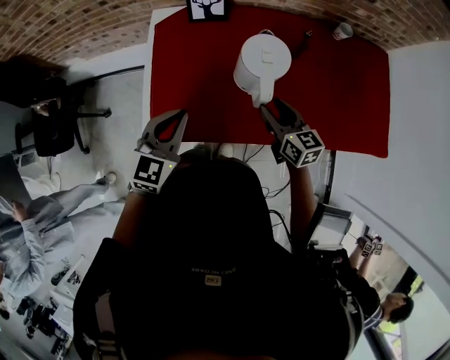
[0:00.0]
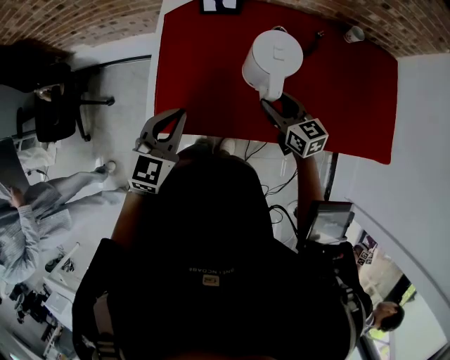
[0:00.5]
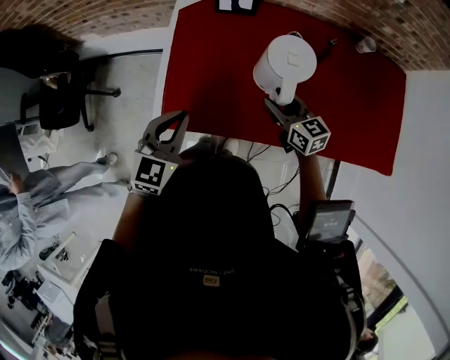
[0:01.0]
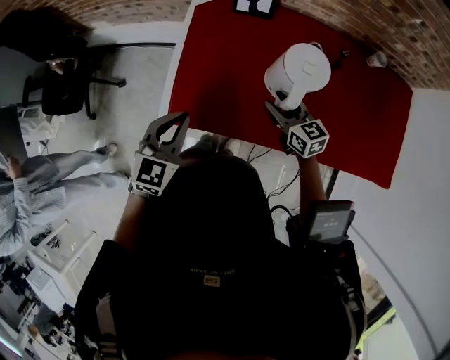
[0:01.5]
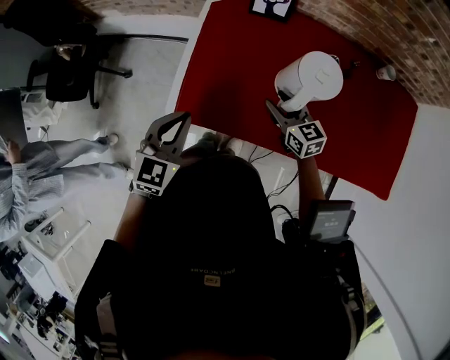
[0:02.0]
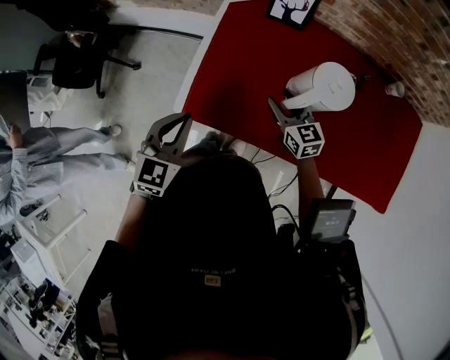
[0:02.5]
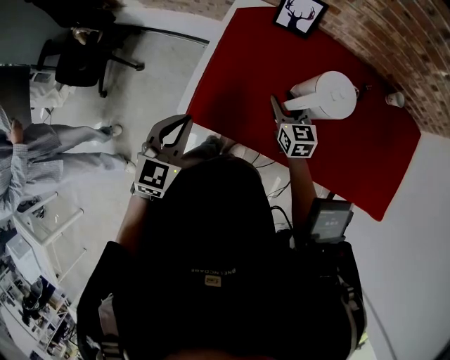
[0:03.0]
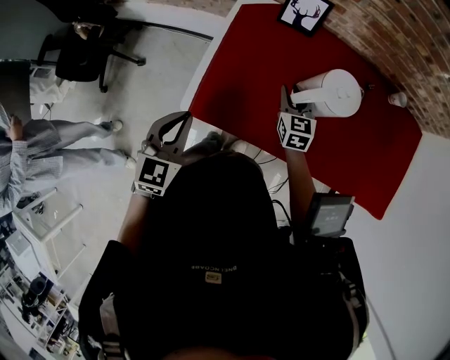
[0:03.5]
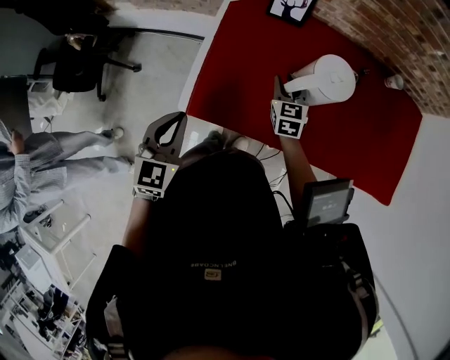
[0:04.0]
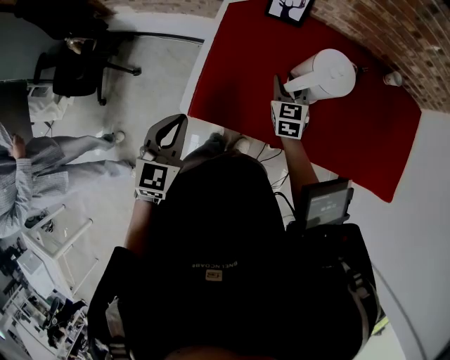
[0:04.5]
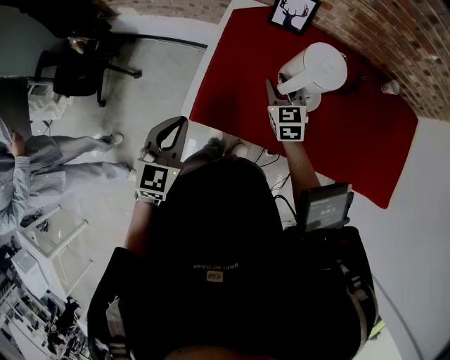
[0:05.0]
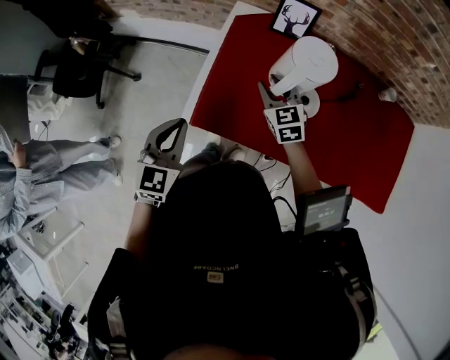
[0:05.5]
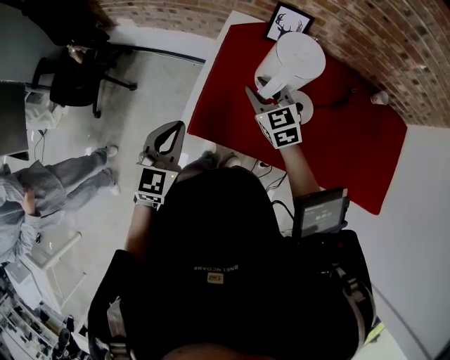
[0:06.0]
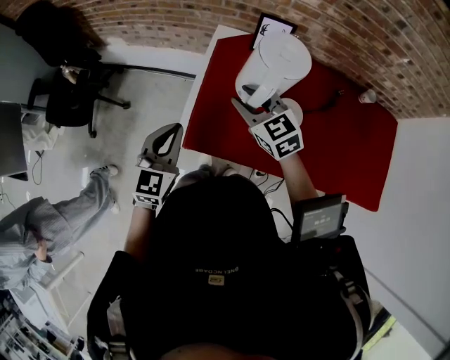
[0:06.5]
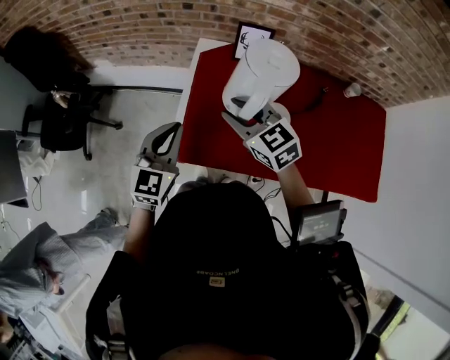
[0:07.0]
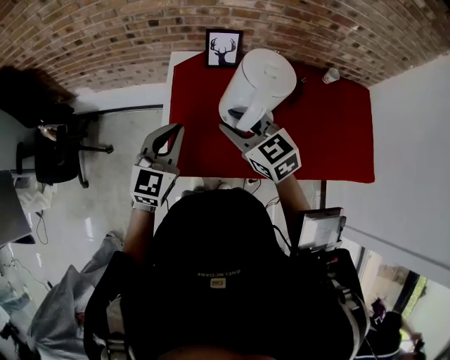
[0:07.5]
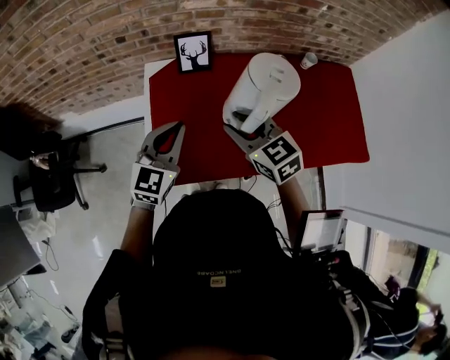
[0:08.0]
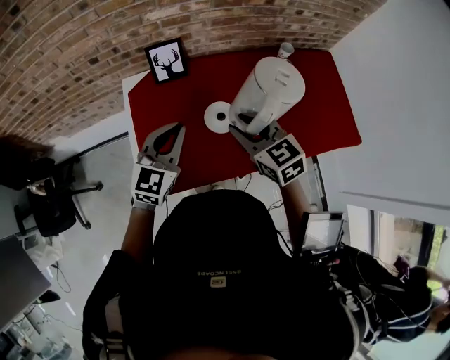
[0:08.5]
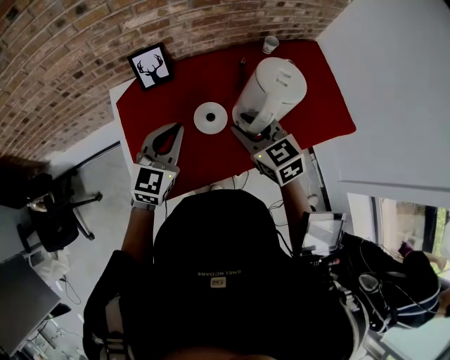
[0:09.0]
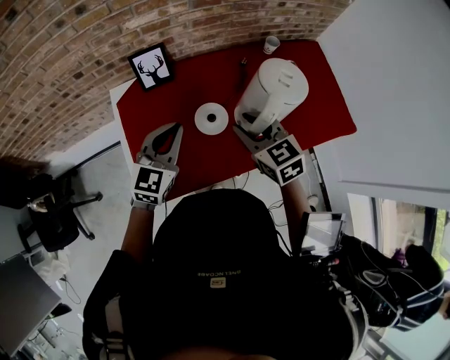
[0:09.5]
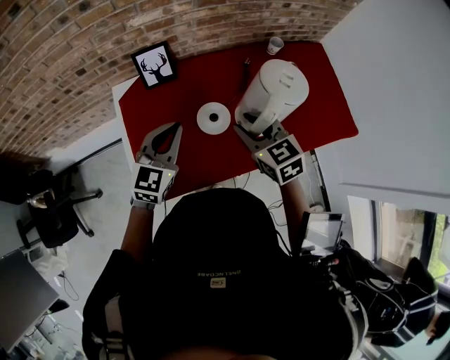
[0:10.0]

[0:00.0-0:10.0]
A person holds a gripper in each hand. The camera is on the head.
0:00.0 to 0:02.0: Both grippers travel together to the left, about 10 cm. The right gripper rotates about 20 degrees.
0:02.0 to 0:04.0: The right gripper is displaced forward by some 5 cm, changes its angle by some 30 degrees, and closes its fingers; the left gripper shifts approximately 5 cm to the left.
0:04.0 to 0:06.0: The right gripper goes about 15 cm to the left and upward, and swivels approximately 30 degrees.
0:06.0 to 0:08.0: The left gripper heads to the right, forward and upward, covering approximately 20 cm, and changes its angle by approximately 30 degrees. Meanwhile the right gripper is displaced upward, to the right and backward by approximately 15 cm.
0:08.0 to 0:10.0: Both grippers travel together to the right, roughly 10 cm.

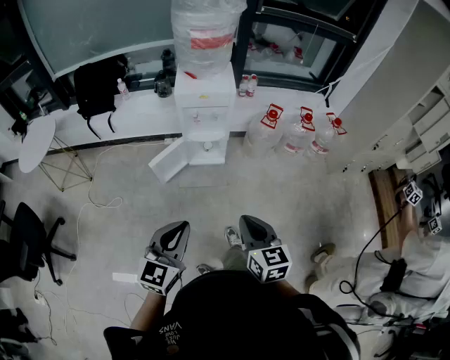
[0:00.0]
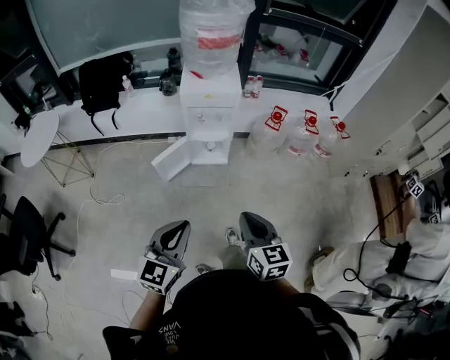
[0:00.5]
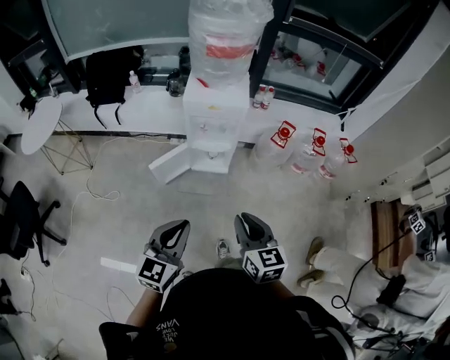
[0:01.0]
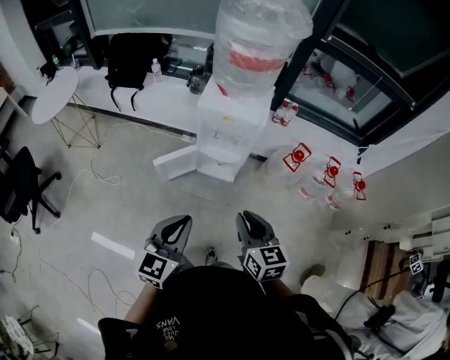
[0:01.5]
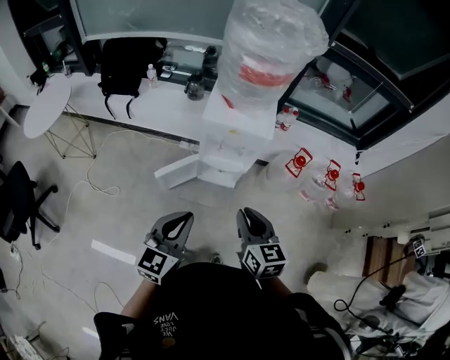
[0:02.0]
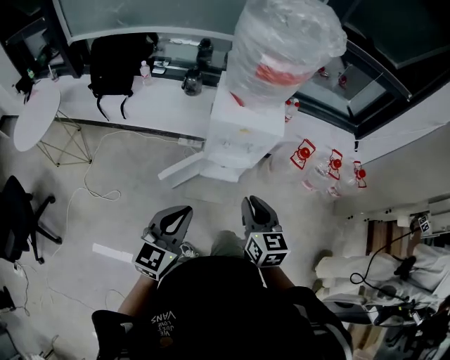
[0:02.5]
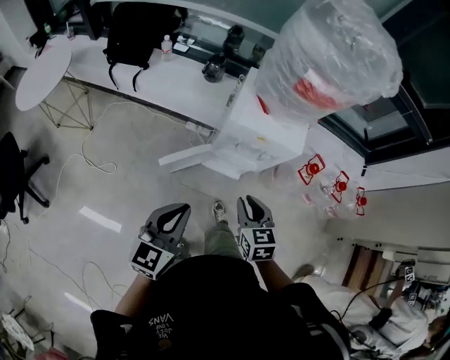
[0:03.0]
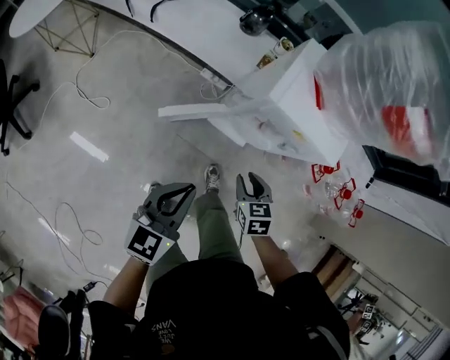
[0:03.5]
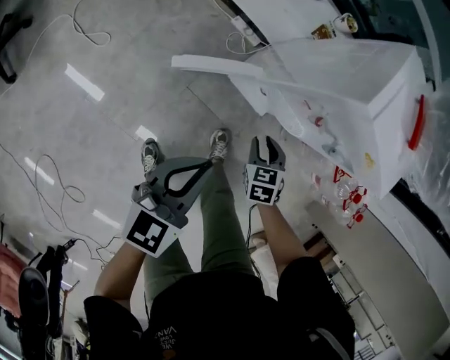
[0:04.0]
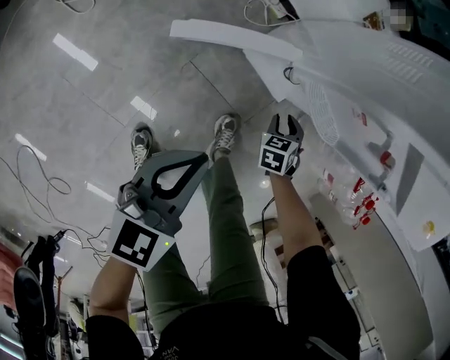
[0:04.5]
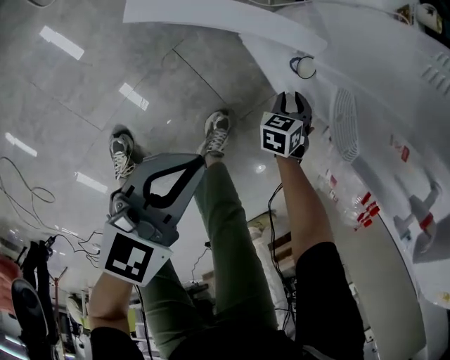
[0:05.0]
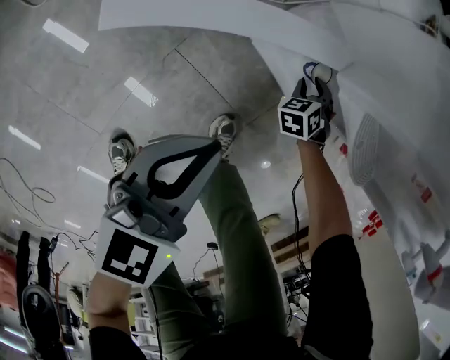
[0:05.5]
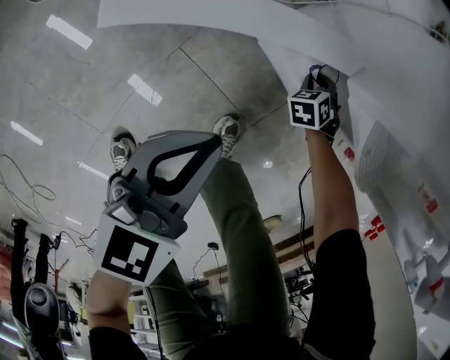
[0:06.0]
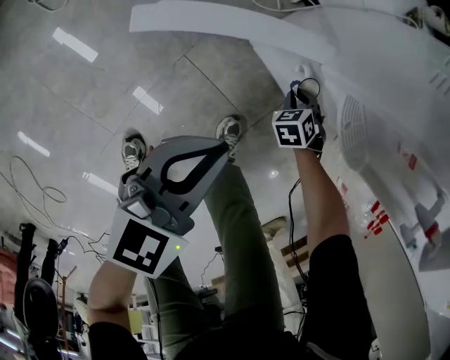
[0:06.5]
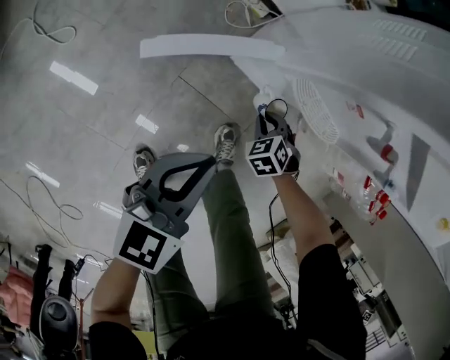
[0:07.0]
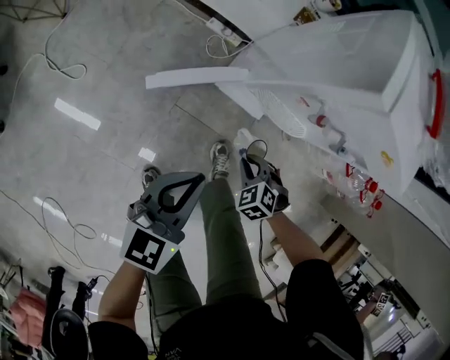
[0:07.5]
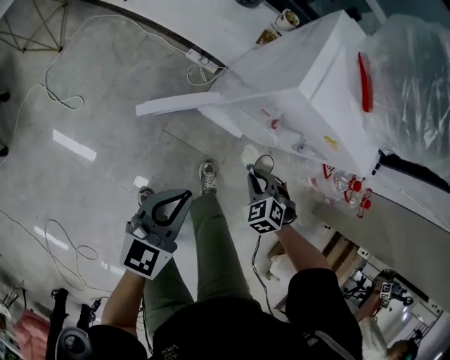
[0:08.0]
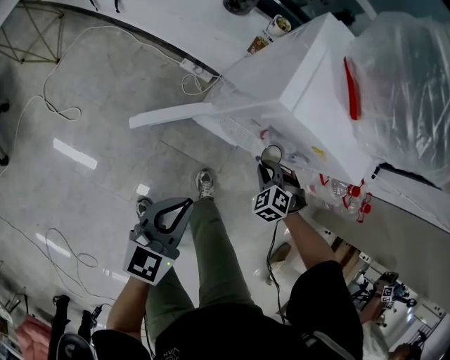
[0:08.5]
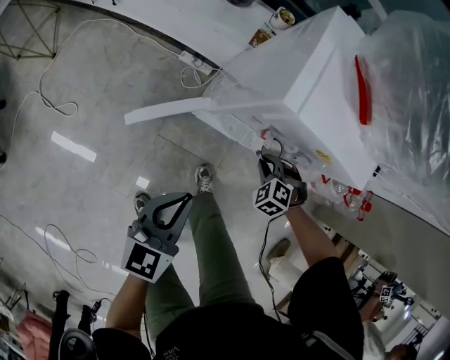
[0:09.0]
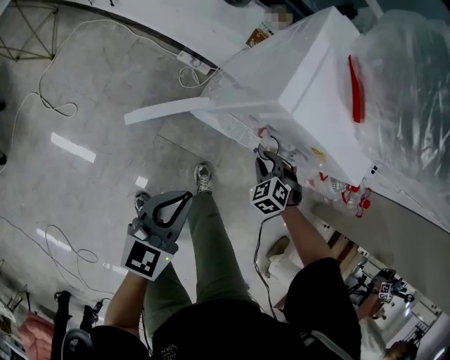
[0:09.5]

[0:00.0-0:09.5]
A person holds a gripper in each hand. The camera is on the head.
0:00.0 to 0:02.0: The two grippers go approximately 30 cm forward.
0:02.0 to 0:04.0: The right gripper shifts roughly 50 cm downward and forward, and tips its fingers downward by approximately 40 degrees; the left gripper goes about 40 cm downward, forward and to the left.
0:04.0 to 0:05.5: The right gripper goes some 50 cm downward and forward, and rotates about 30 degrees; the left gripper moves downward, roughly 35 cm.
0:05.5 to 0:07.5: Both grippers travel together upward, about 30 cm. The right gripper swivels some 20 degrees.
0:07.5 to 0:09.5: The left gripper goes approximately 5 cm upward, while the right gripper shifts about 20 cm forward, upward and to the right.

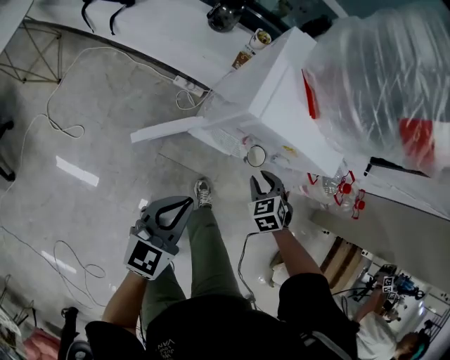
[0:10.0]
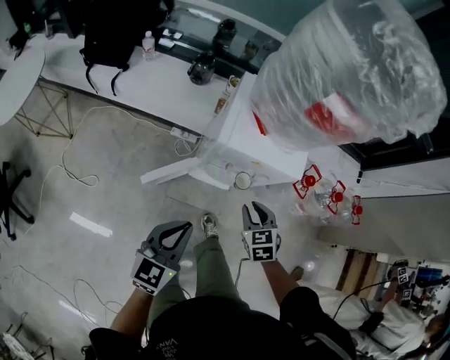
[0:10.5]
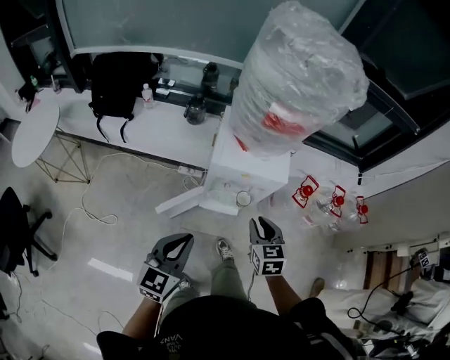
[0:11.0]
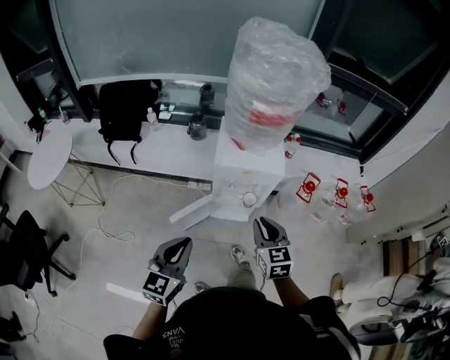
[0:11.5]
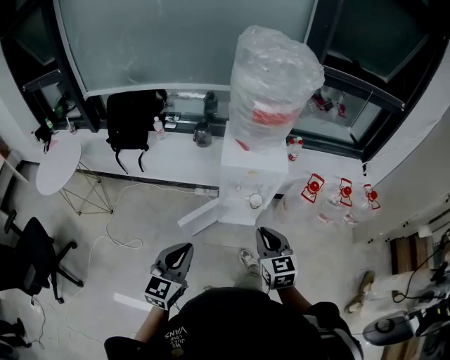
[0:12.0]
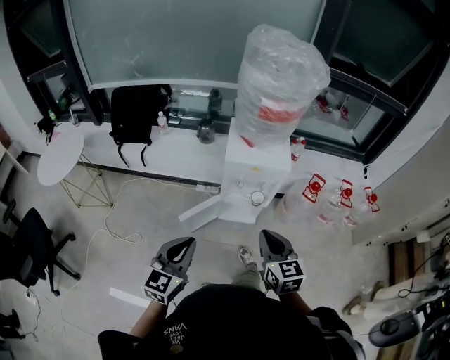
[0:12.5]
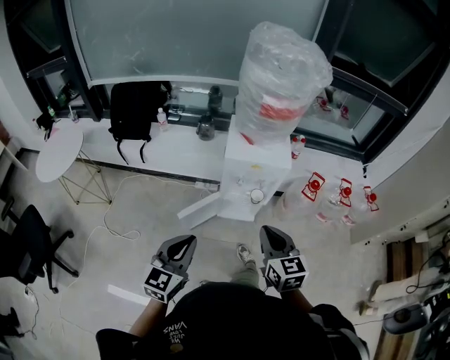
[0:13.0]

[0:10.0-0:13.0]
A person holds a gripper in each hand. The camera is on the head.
0:10.0 to 0:11.5: Both grippers travel together upward and backward, some 35 cm. The right gripper tips its fingers upward by roughly 40 degrees.
0:11.5 to 0:13.0: The left gripper heads backward, covering approximately 5 cm. The right gripper is displaced backward by some 10 cm.

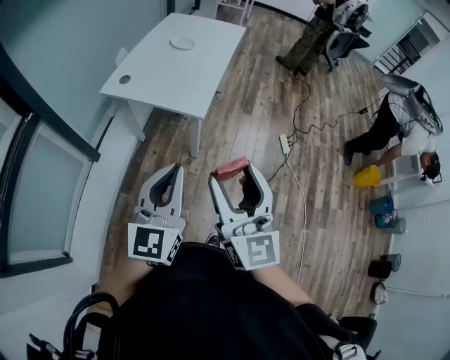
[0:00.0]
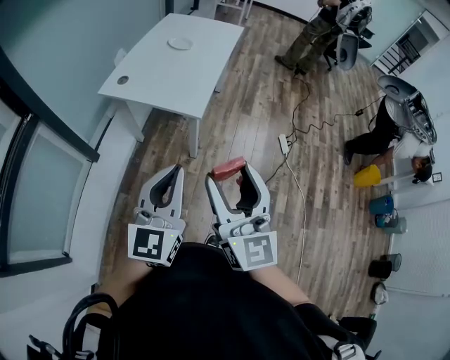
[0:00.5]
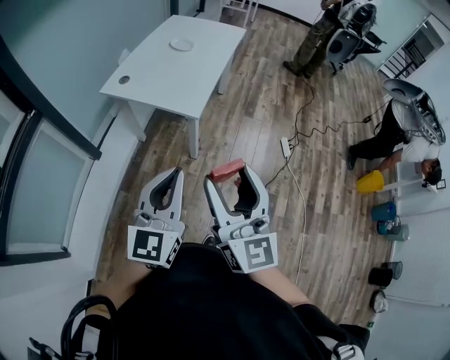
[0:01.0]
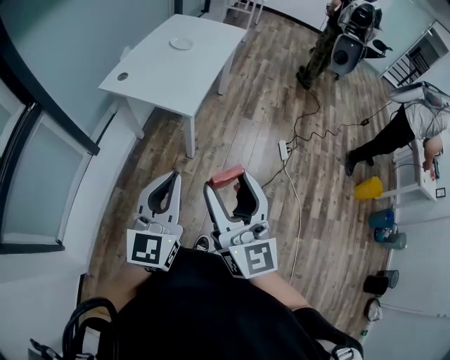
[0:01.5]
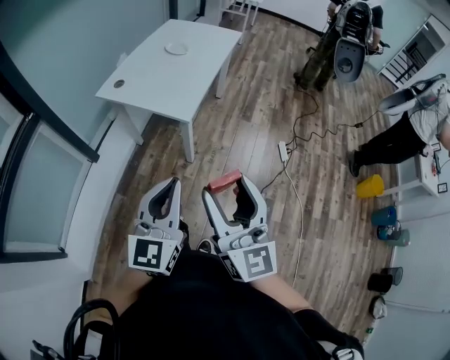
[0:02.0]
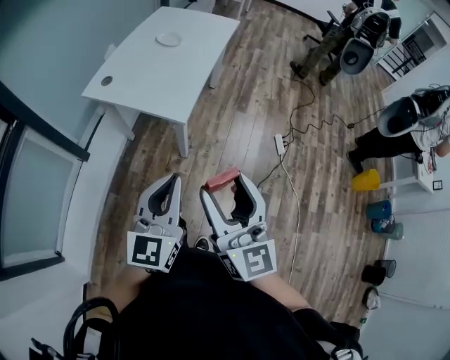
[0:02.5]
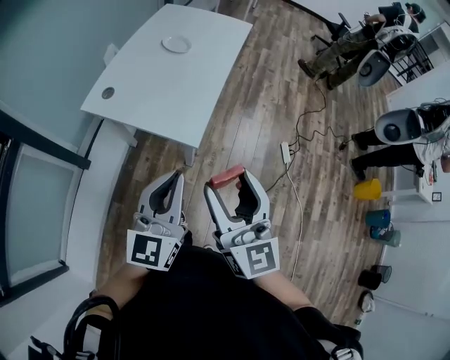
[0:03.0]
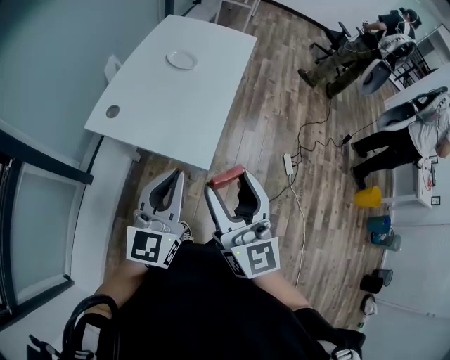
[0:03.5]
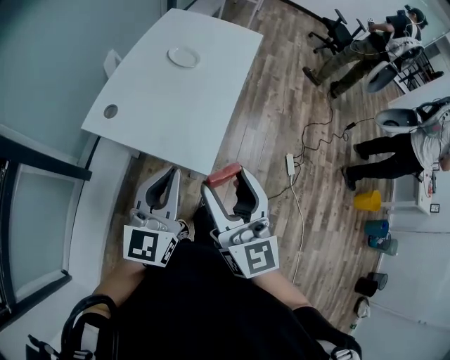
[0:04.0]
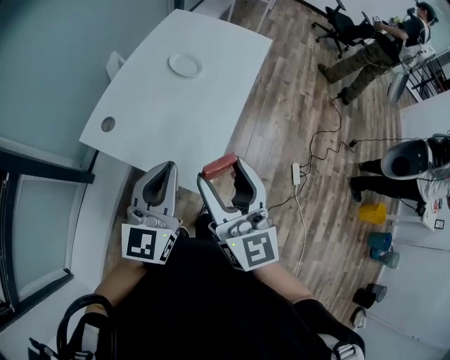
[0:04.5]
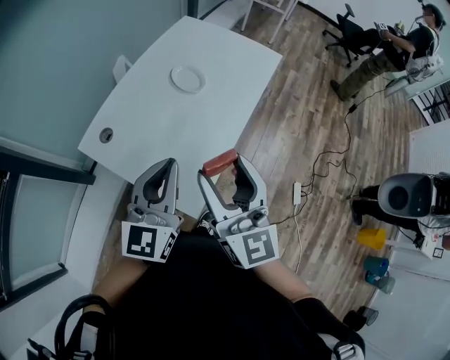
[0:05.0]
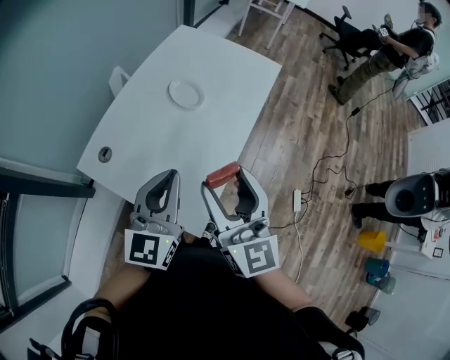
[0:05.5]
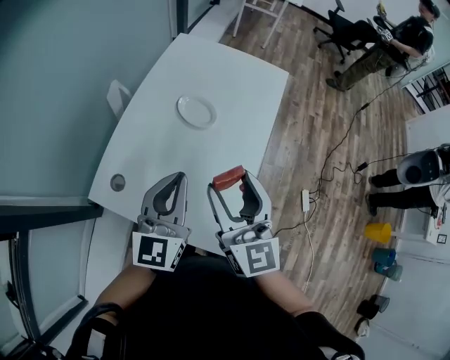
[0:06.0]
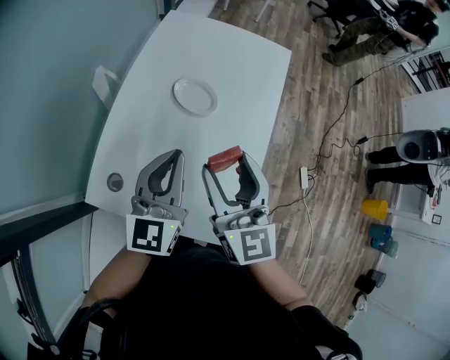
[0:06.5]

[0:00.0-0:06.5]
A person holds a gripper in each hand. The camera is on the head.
0:00.0 to 0:02.0: The grippers both shift to the right by some 10 cm.
0:02.0 to 0:04.5: The two grippers travel together, forward, approximately 40 cm.
0:04.5 to 0:06.5: Both grippers travel together forward, approximately 25 cm.
